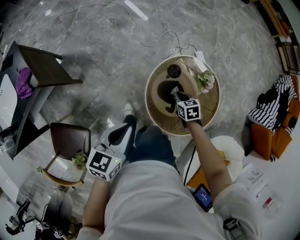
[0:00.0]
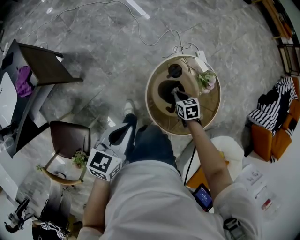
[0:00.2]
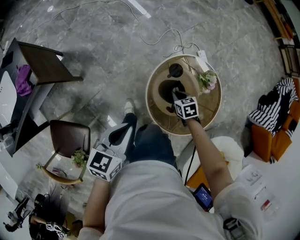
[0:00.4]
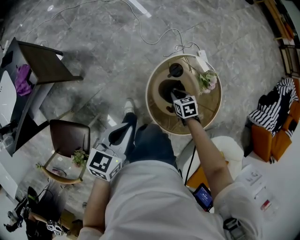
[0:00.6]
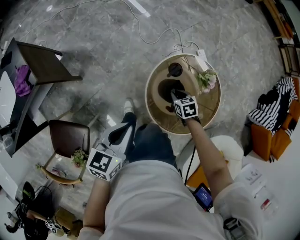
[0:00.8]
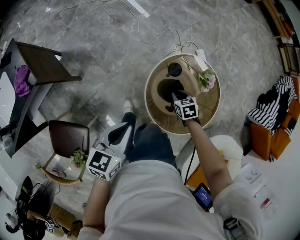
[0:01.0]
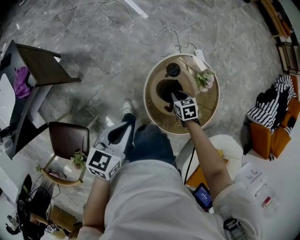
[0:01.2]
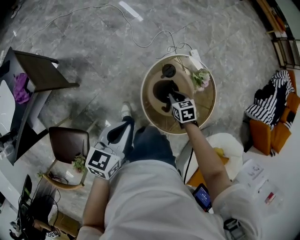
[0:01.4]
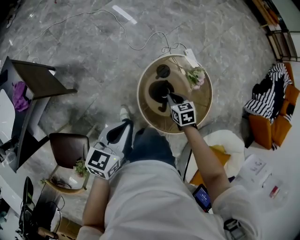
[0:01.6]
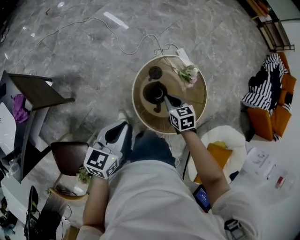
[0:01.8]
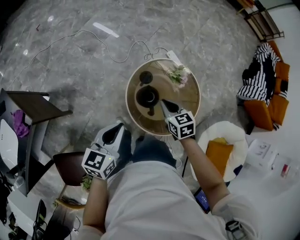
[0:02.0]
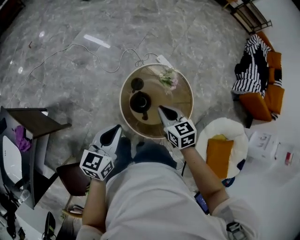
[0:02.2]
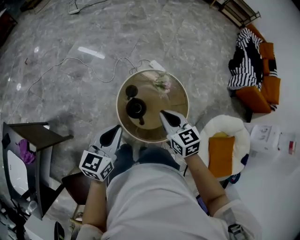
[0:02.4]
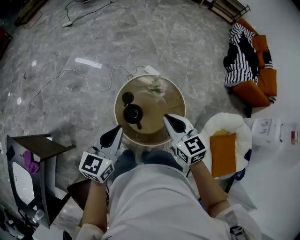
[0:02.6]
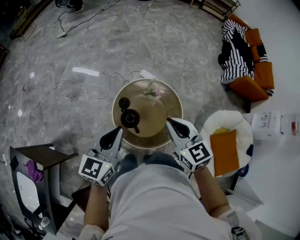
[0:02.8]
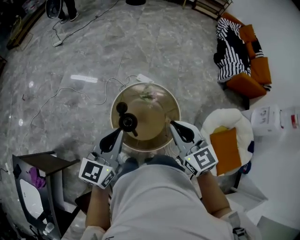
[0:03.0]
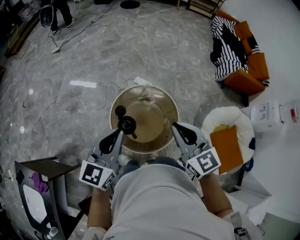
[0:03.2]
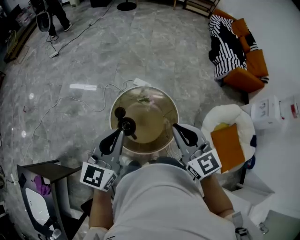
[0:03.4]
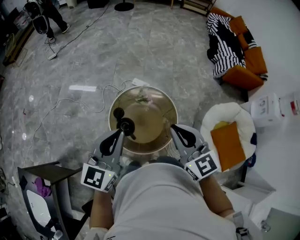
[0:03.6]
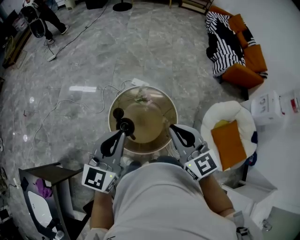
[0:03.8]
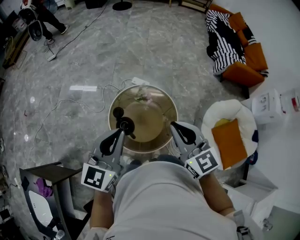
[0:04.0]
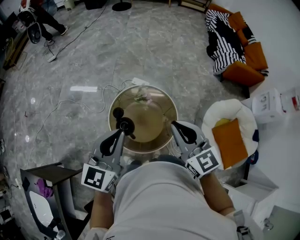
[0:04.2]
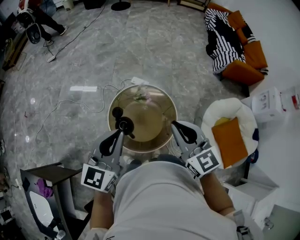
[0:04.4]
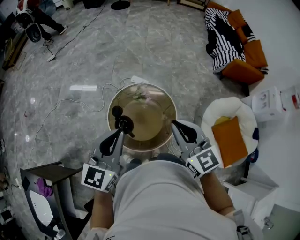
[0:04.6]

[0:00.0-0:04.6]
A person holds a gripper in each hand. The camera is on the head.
0:00.0 to 0:01.6: The right gripper shifts roughly 5 cm upward.
0:01.6 to 0:03.0: The right gripper travels upward by about 40 cm, and points its fingers roughly 40 degrees further upward. Meanwhile the left gripper heads upward, covering roughly 20 cm, and rotates some 40 degrees.
0:03.0 to 0:04.6: The two grippers go about 5 cm to the right.

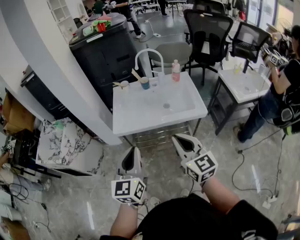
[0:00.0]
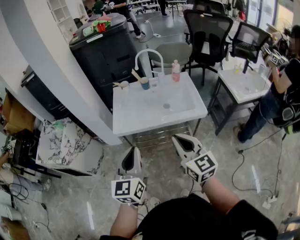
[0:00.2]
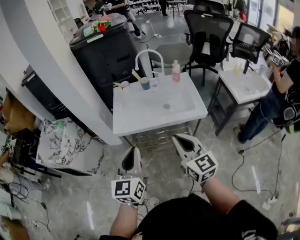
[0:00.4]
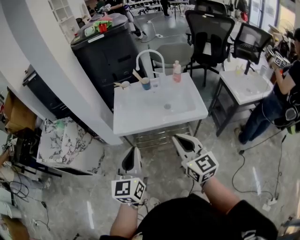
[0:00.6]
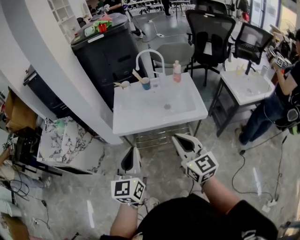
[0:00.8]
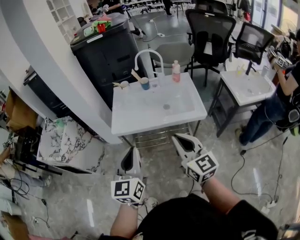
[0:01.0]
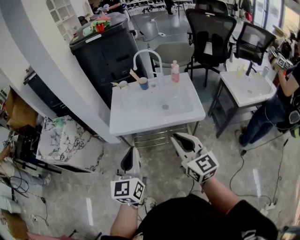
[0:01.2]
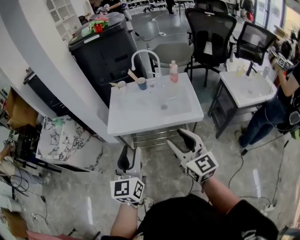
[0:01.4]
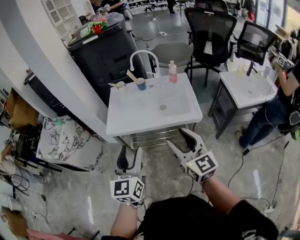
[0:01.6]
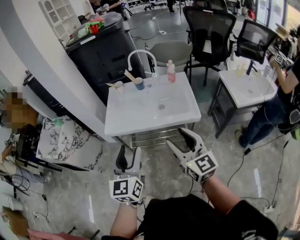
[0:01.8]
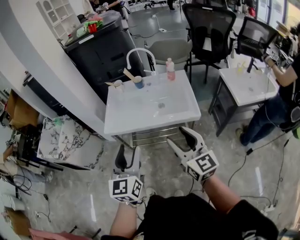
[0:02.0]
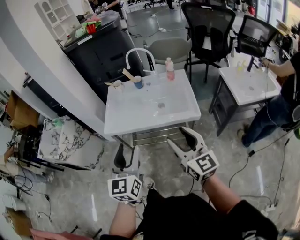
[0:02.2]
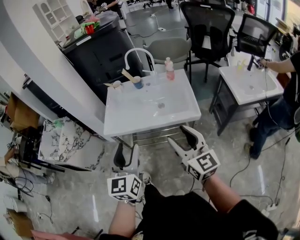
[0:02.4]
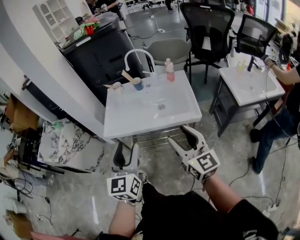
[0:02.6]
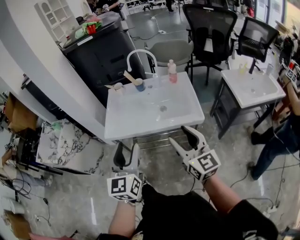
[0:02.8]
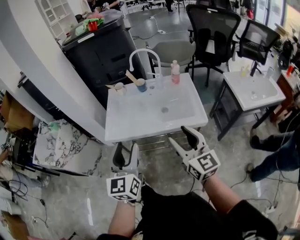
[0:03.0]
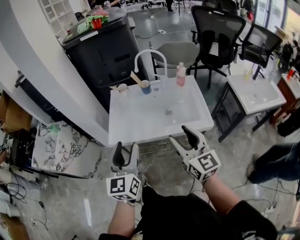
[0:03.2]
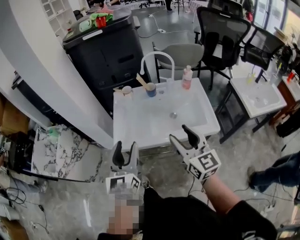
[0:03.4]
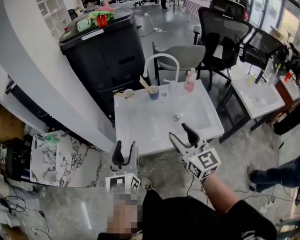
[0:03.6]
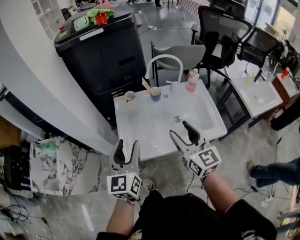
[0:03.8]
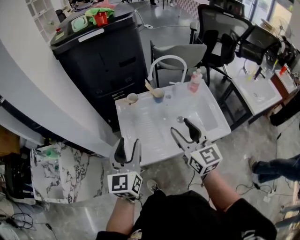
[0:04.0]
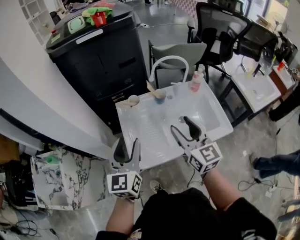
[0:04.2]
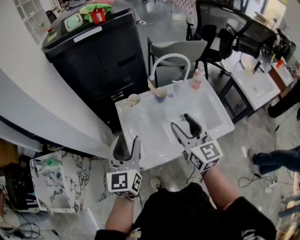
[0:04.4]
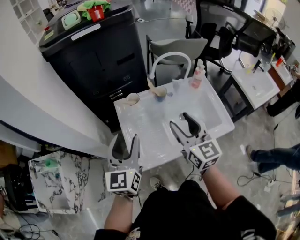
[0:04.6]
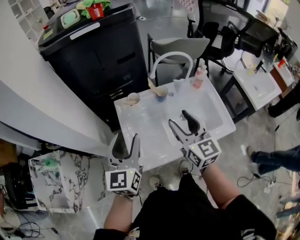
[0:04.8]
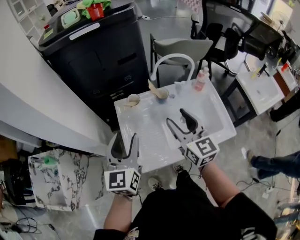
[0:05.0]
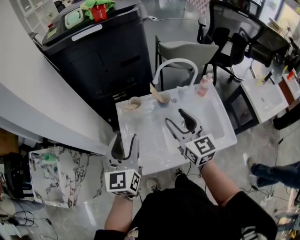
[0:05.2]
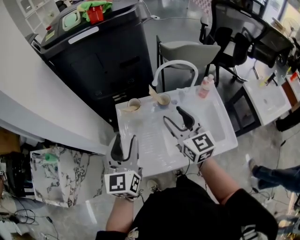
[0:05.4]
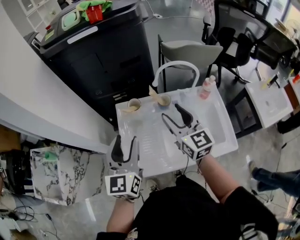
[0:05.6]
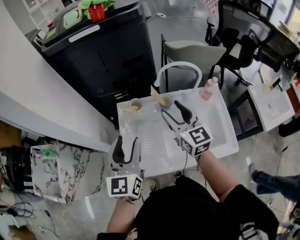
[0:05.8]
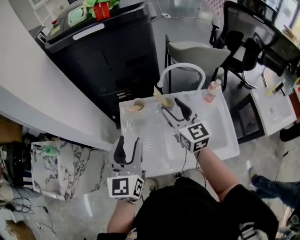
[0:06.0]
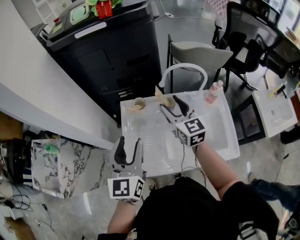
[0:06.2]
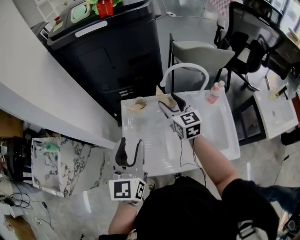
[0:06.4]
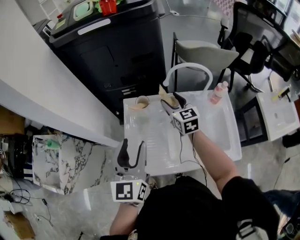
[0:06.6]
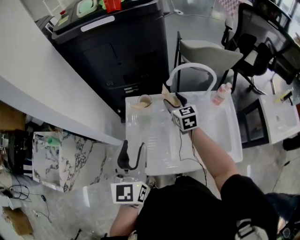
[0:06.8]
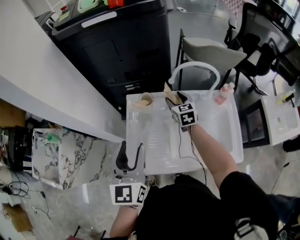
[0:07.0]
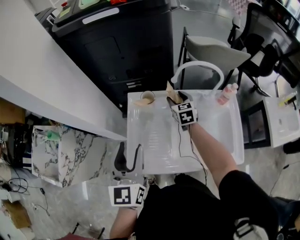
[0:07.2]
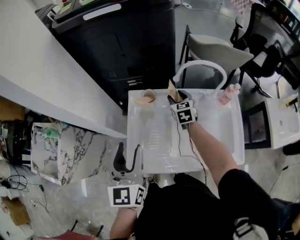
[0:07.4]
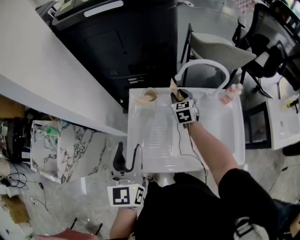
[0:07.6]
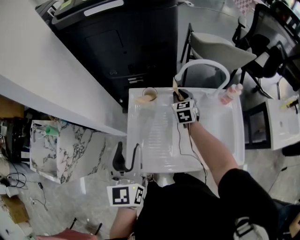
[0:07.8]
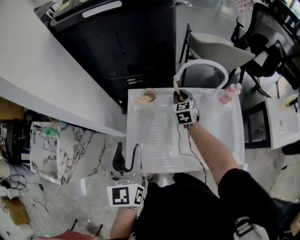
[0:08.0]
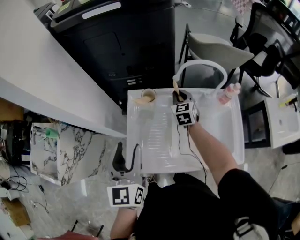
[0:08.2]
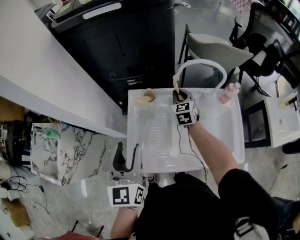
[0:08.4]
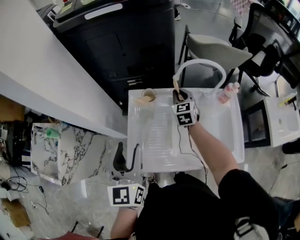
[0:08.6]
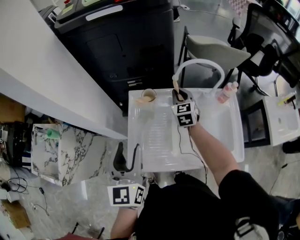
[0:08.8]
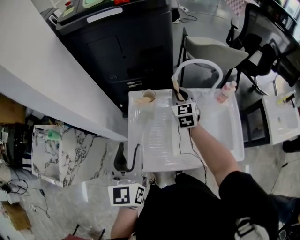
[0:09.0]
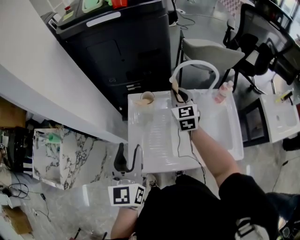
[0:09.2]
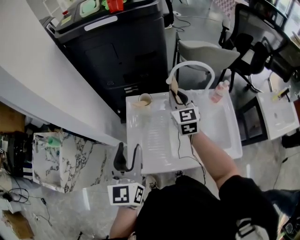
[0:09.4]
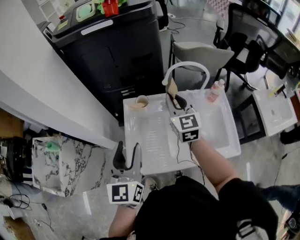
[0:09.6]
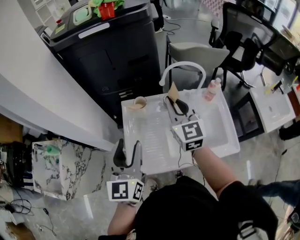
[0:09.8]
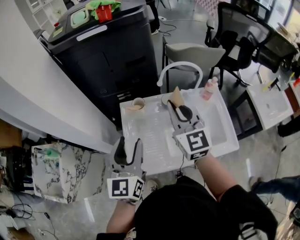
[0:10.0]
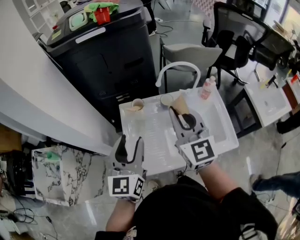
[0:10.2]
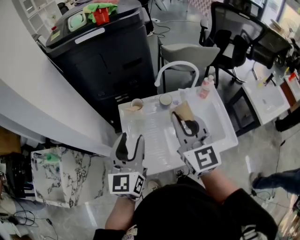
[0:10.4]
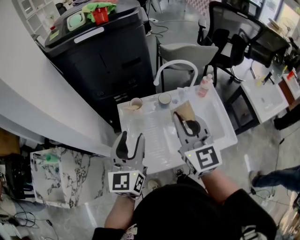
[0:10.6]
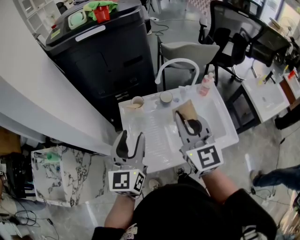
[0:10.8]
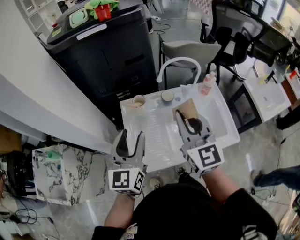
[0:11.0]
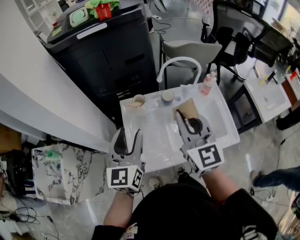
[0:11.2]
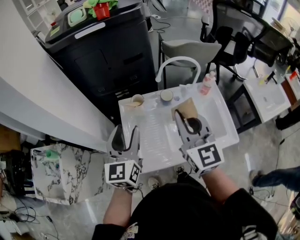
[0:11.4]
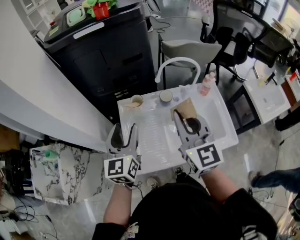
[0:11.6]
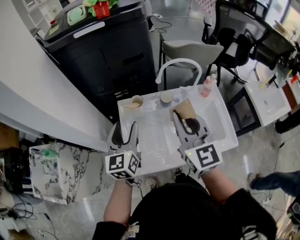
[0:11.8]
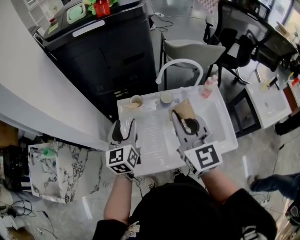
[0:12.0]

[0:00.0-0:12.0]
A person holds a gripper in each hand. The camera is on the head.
0:00.0 to 0:01.6: The two grippers go some 10 cm to the right. The left gripper opens up; the right gripper opens.
0:01.6 to 0:03.0: The two grippers go about 10 cm forward.
0:03.0 to 0:04.4: The grippers both shift forward and to the left by roughly 35 cm.
0:04.4 to 0:06.0: The right gripper heads forward, covering some 15 cm. Meanwhile the left gripper heads to the right and forward, covering some 10 cm.
0:06.0 to 0:07.6: The left gripper shifts by about 5 cm, while the right gripper travels downward and forward by some 25 cm, rotates roughly 30 degrees, and closes.
0:07.6 to 0:09.0: The right gripper is displaced upward by some 10 cm, and closes its fingers.
0:09.0 to 0:10.4: The left gripper moves about 5 cm. The right gripper heads backward and upward, covering some 30 cm.
0:10.4 to 0:12.0: The left gripper shifts approximately 10 cm forward and downward.

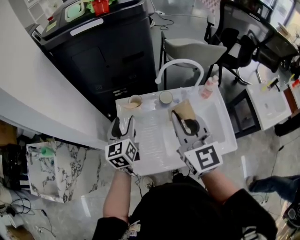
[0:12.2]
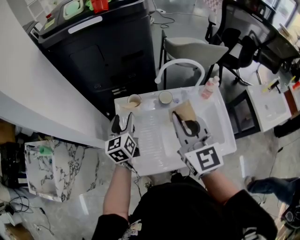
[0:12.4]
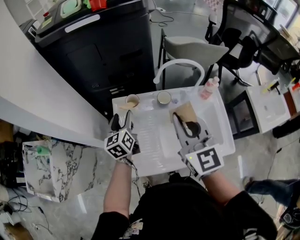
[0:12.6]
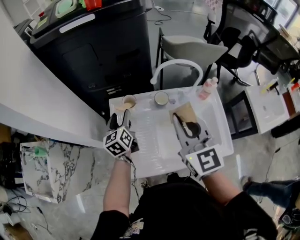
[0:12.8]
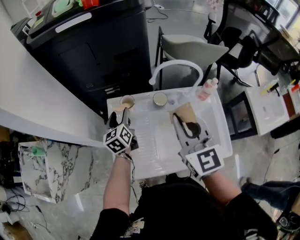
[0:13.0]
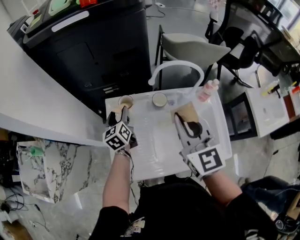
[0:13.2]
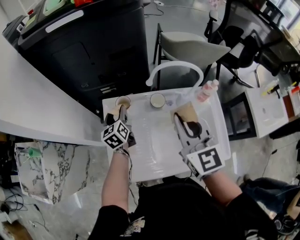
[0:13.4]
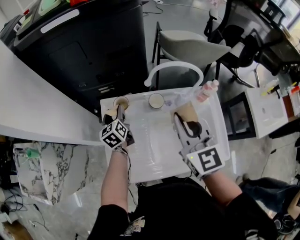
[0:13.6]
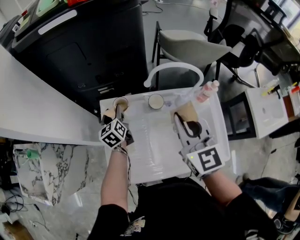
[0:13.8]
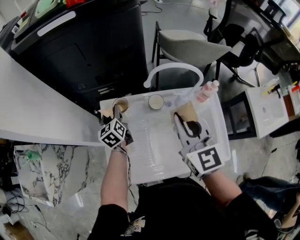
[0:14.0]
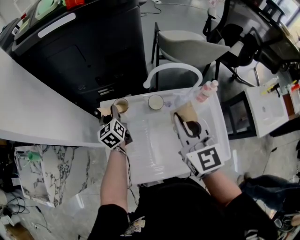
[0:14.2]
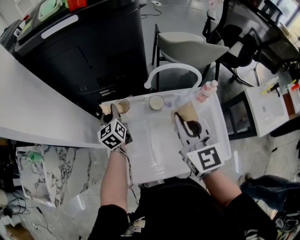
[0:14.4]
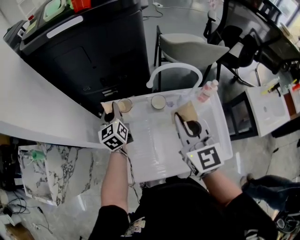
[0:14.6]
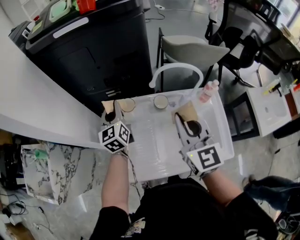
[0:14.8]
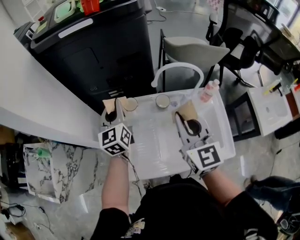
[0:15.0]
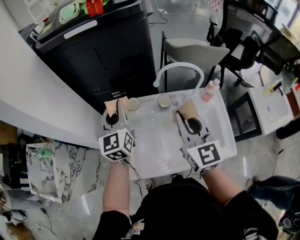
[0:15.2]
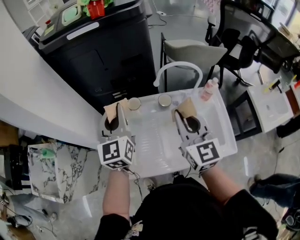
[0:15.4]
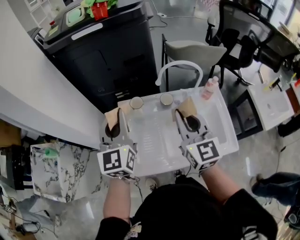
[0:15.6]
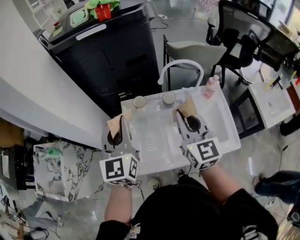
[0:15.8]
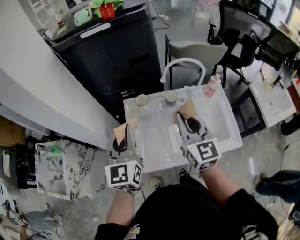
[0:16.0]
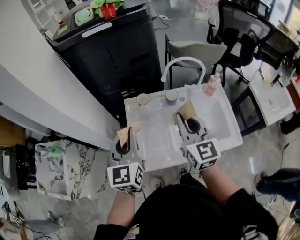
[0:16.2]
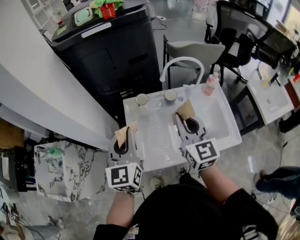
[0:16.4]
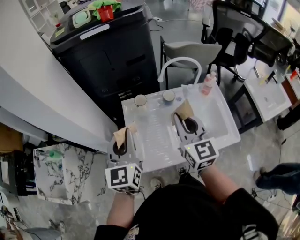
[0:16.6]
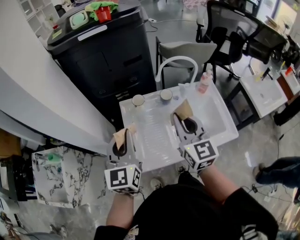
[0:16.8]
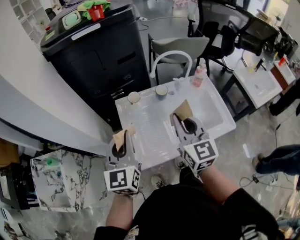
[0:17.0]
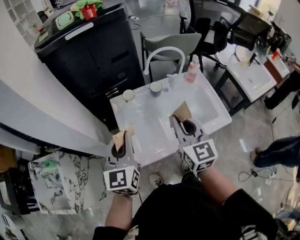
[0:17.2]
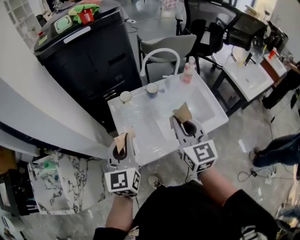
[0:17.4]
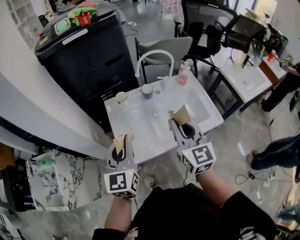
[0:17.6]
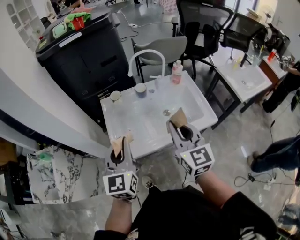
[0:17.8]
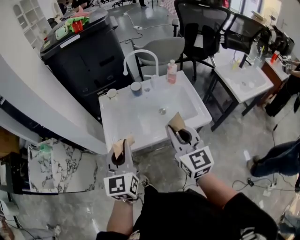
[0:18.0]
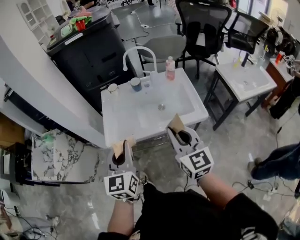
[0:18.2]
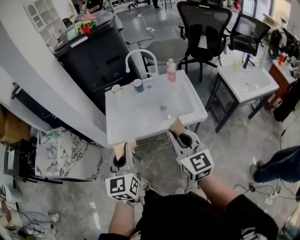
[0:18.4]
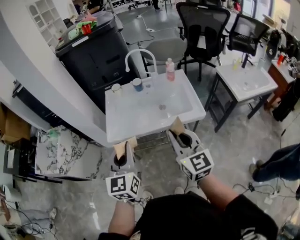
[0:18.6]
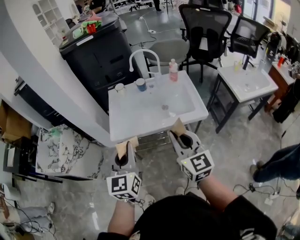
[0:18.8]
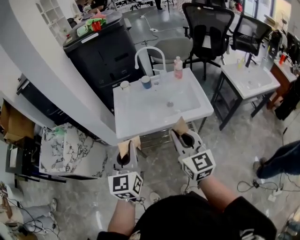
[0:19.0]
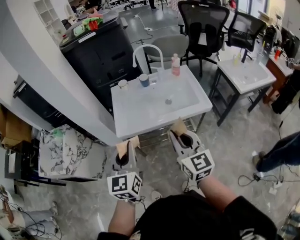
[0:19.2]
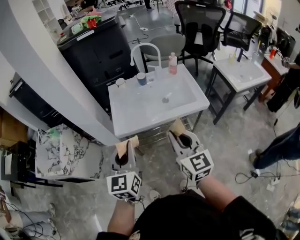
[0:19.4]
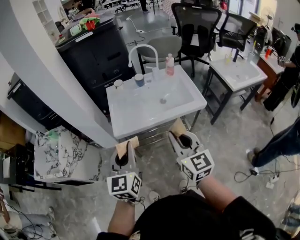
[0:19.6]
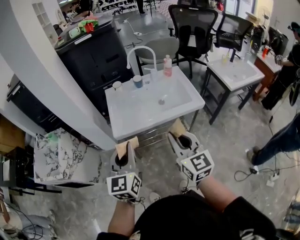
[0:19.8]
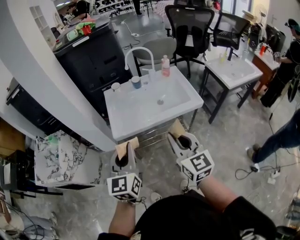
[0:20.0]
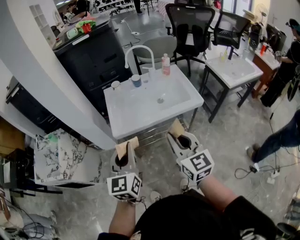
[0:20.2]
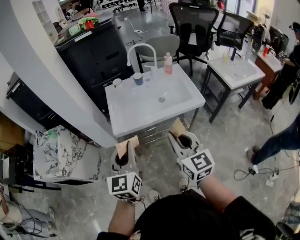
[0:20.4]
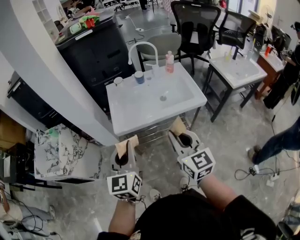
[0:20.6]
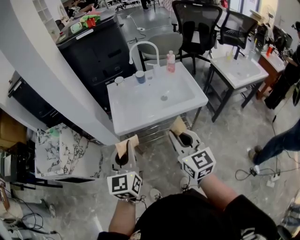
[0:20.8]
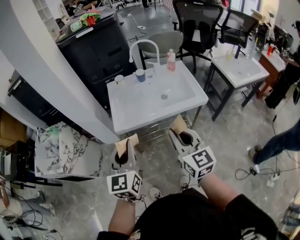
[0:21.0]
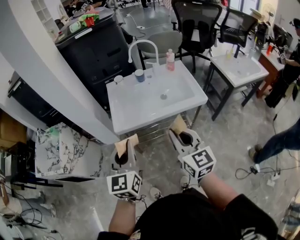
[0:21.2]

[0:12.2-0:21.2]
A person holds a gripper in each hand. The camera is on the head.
0:12.2 to 0:13.8: The right gripper moves to the right, downward and forward, approximately 10 cm. The left gripper travels downward and forward by about 20 cm, and rotates about 20 degrees.
0:13.8 to 0:15.2: The right gripper shifts by approximately 5 cm, while the left gripper moves upward, some 20 cm, rotates some 30 degrees, and closes up.
0:15.2 to 0:16.6: The right gripper shifts approximately 10 cm backward and to the left. Meanwhile the left gripper goes some 15 cm backward.
0:16.6 to 0:18.2: The two grippers go some 30 cm backward and to the right.
0:18.2 to 0:19.8: Both grippers travel together backward and to the left, some 15 cm.
0:19.8 to 0:21.2: There are only small adjustments of the grippers.
